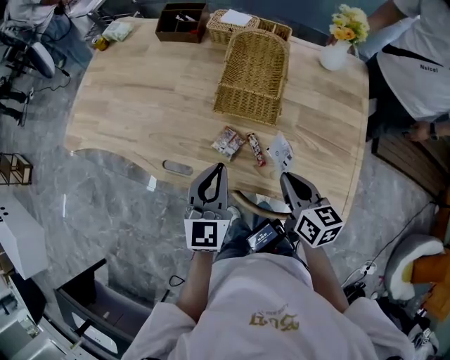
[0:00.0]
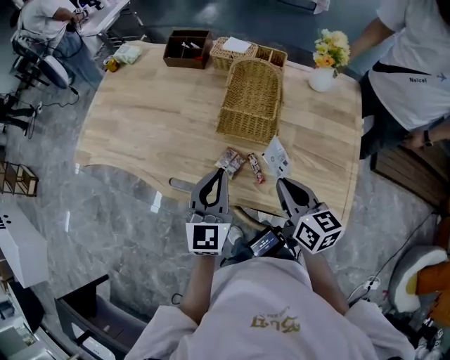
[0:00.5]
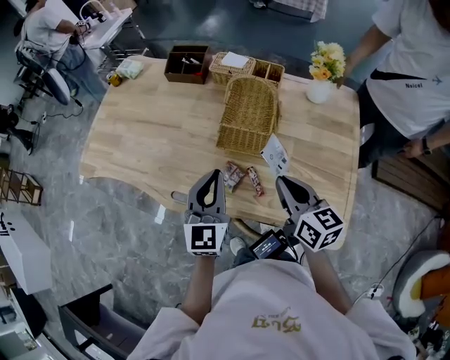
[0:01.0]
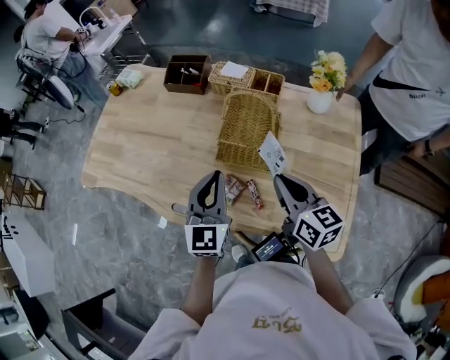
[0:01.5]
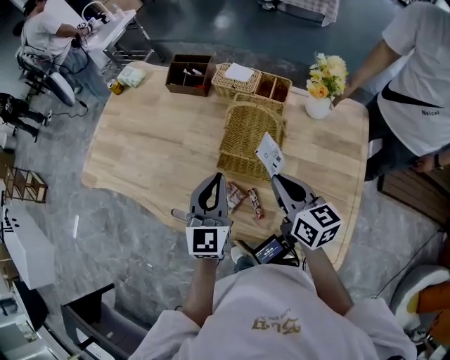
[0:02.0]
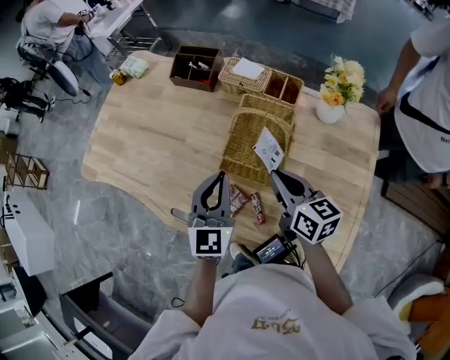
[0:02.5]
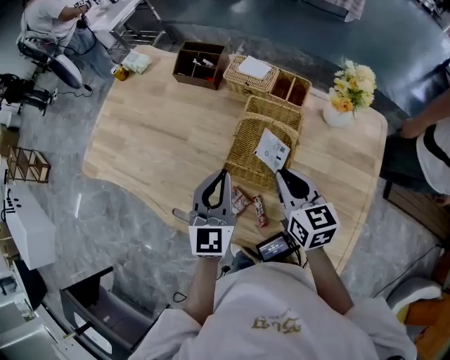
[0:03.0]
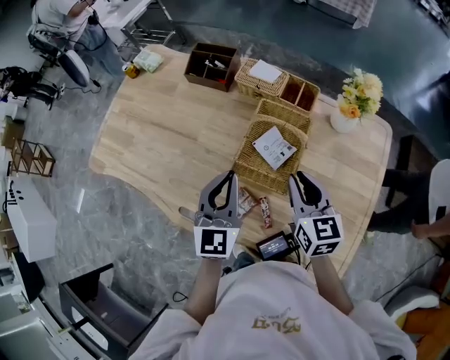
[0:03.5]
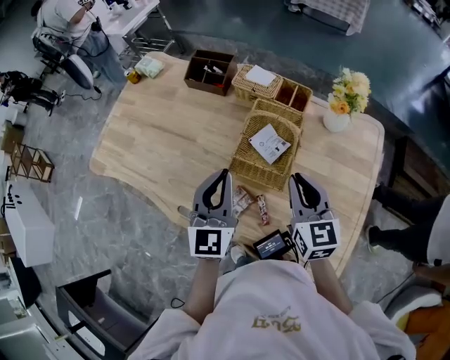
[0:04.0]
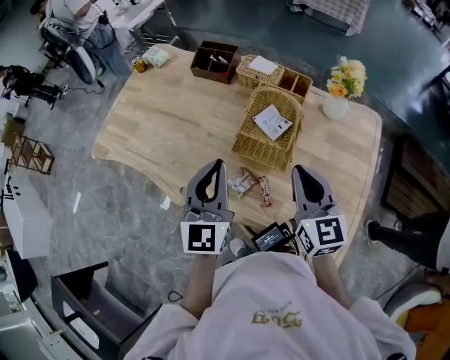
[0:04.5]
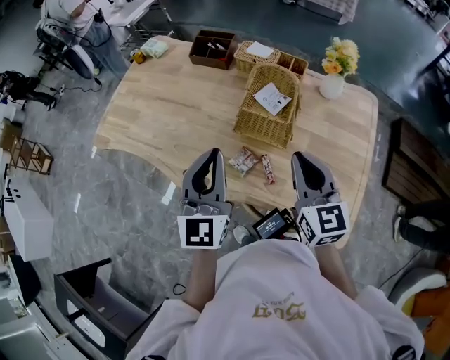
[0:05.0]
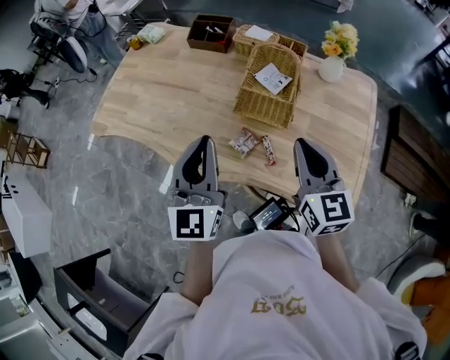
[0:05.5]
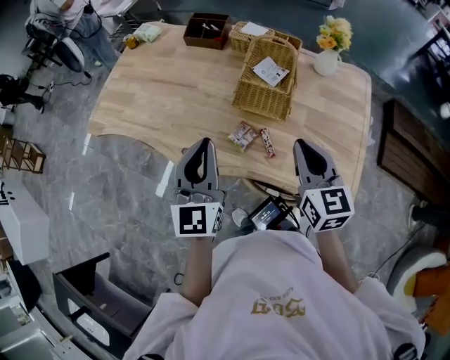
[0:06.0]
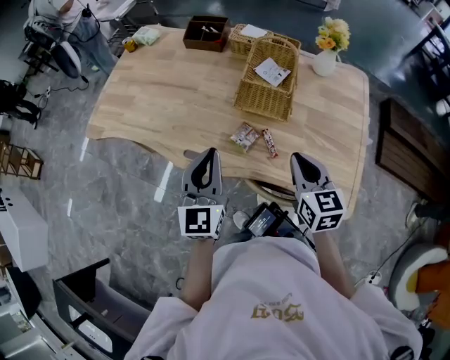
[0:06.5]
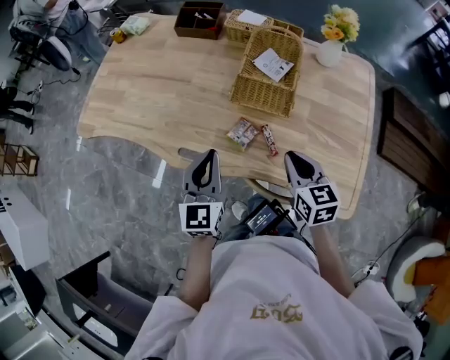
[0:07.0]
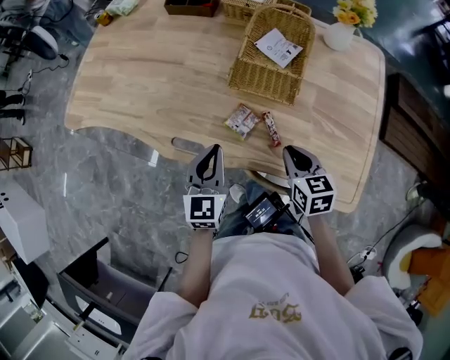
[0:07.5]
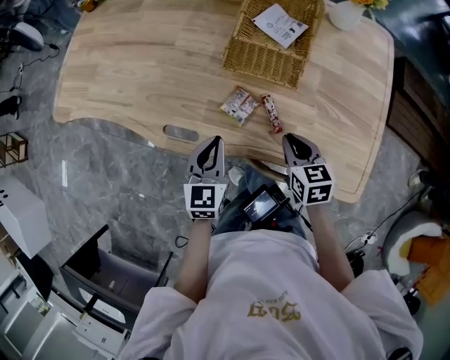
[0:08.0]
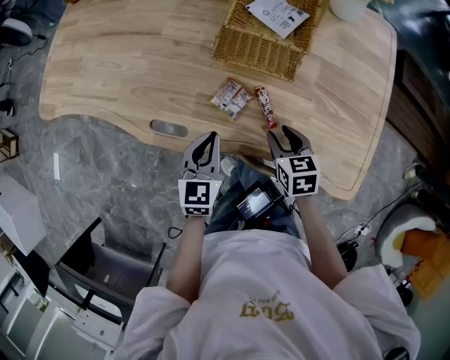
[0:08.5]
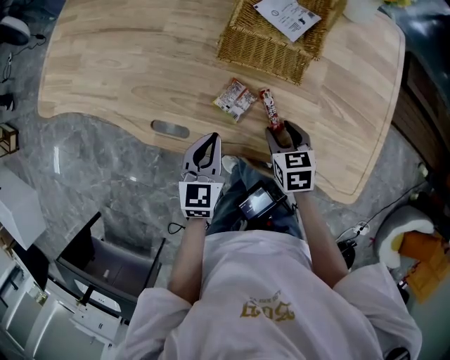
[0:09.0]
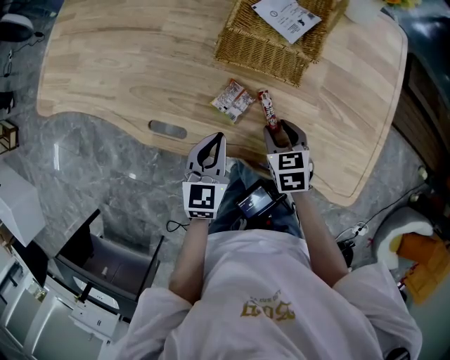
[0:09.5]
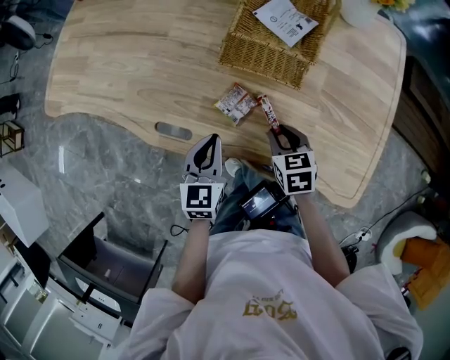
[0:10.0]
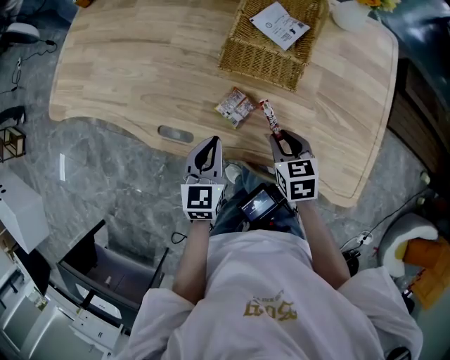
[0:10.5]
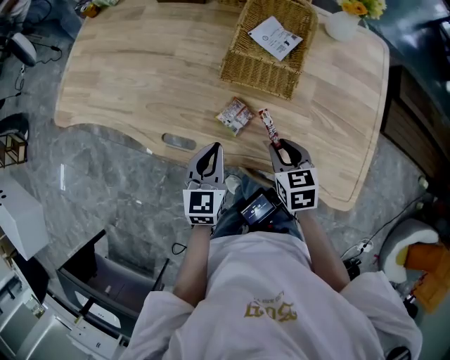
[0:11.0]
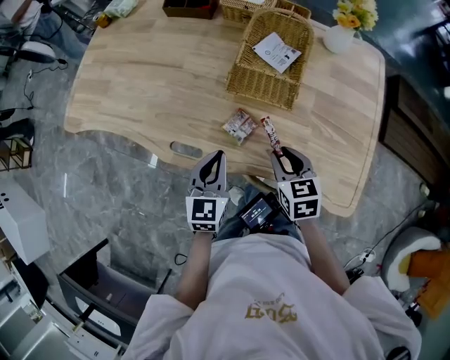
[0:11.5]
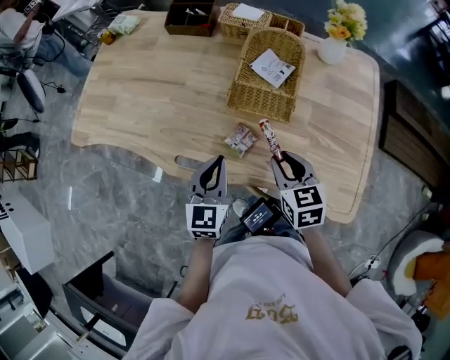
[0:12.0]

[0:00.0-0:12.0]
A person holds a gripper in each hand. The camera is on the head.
0:00.0 to 0:02.0: Both grippers travel together forward and upward, about 15 cm.
0:02.0 to 0:04.0: The right gripper turns by about 20 degrees.
0:04.0 to 0:06.0: The left gripper shifts roughly 20 cm backward and to the left. Meanwhile the right gripper heads backward, covering some 15 cm.
0:06.0 to 0:08.0: The grippers both shift downward by some 25 cm. The right gripper turns by approximately 30 degrees; the left gripper changes its angle by some 30 degrees.
0:08.0 to 0:10.0: The right gripper shifts roughly 5 cm downward, and opens up.
0:10.0 to 0:12.0: The two grippers go about 15 cm upward.

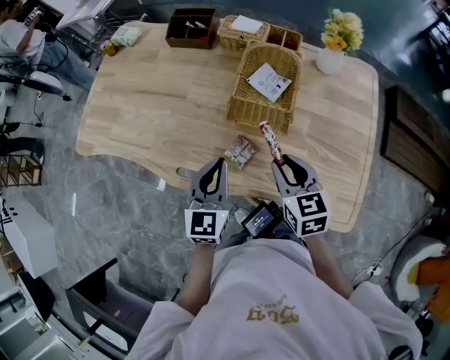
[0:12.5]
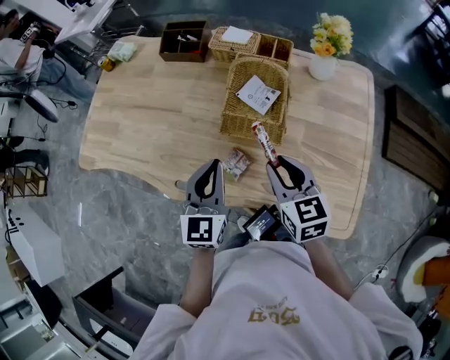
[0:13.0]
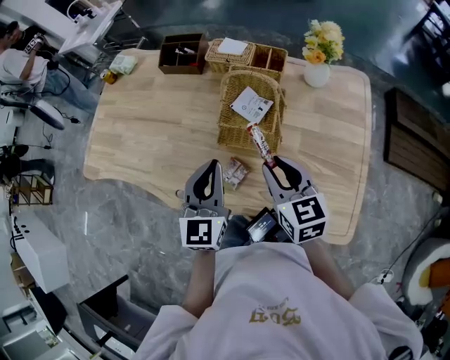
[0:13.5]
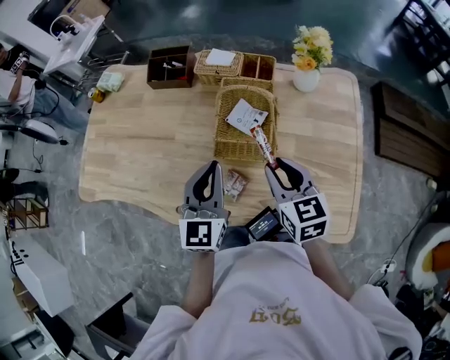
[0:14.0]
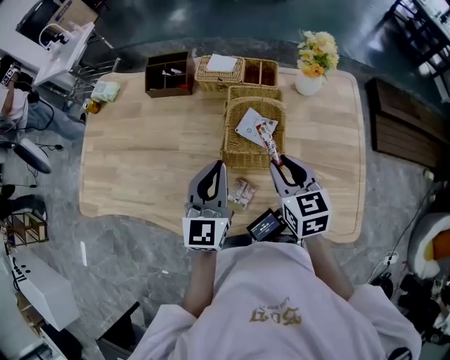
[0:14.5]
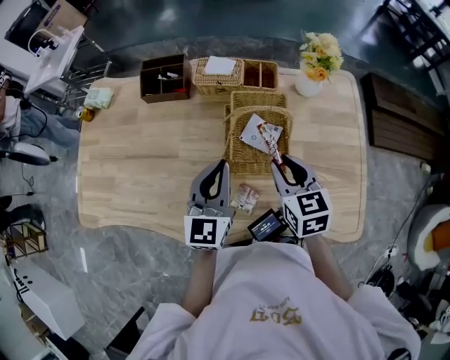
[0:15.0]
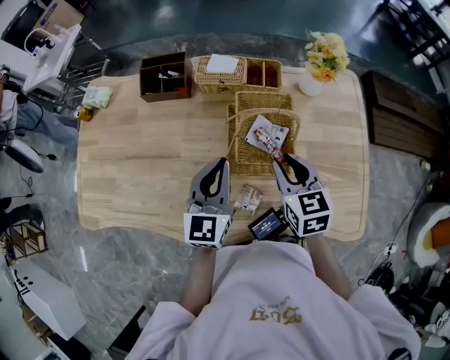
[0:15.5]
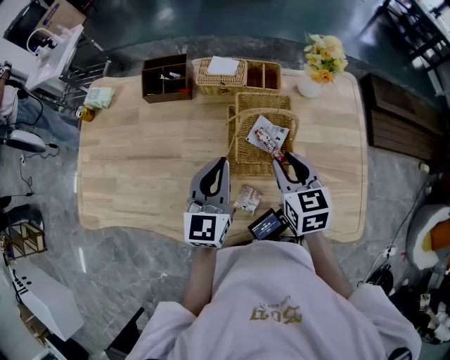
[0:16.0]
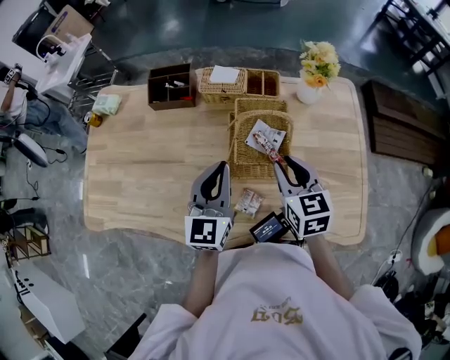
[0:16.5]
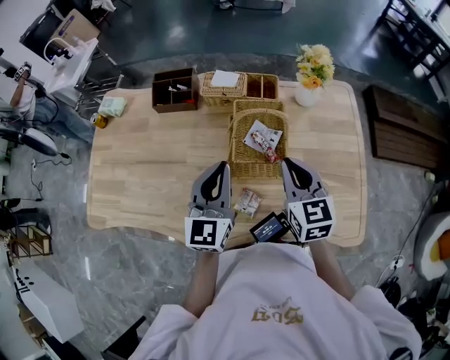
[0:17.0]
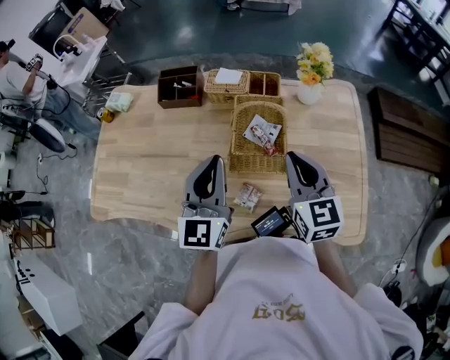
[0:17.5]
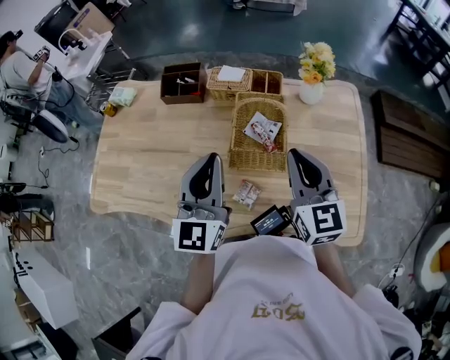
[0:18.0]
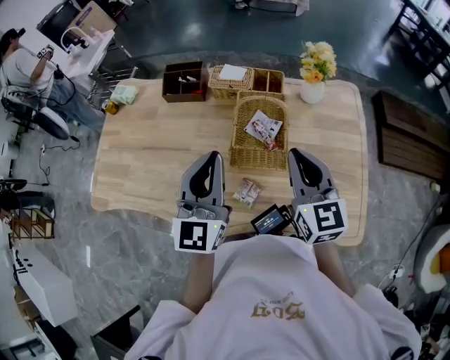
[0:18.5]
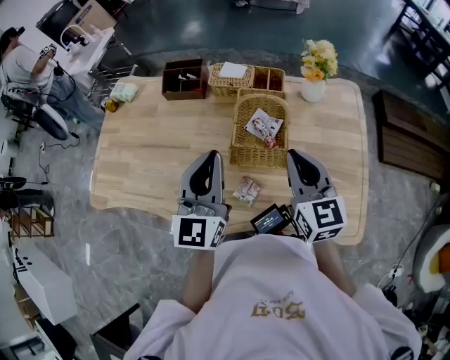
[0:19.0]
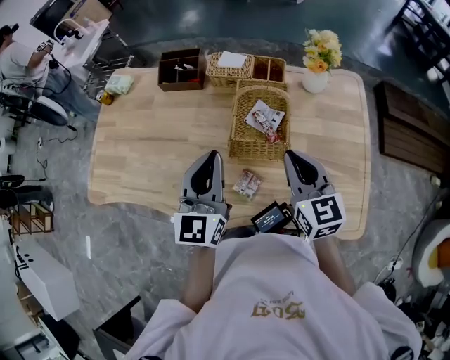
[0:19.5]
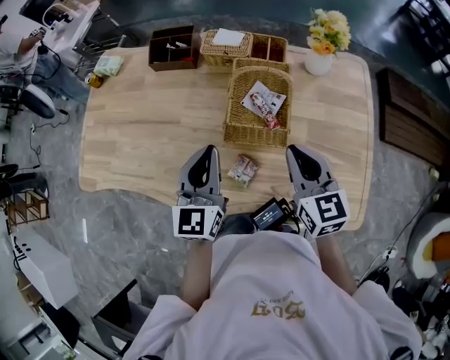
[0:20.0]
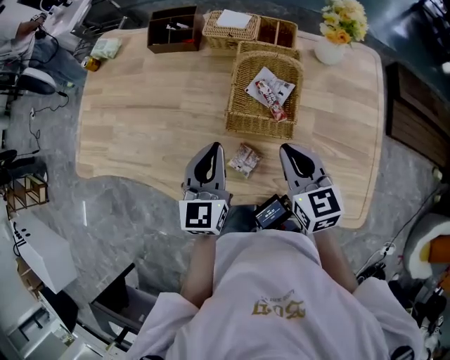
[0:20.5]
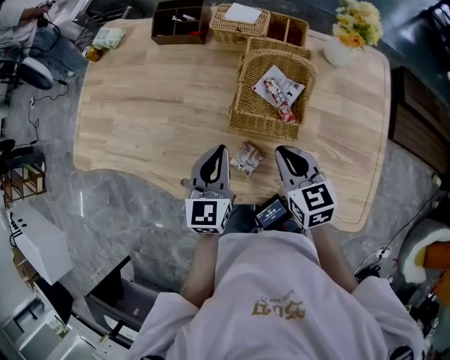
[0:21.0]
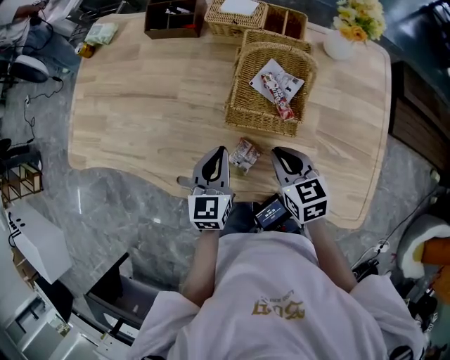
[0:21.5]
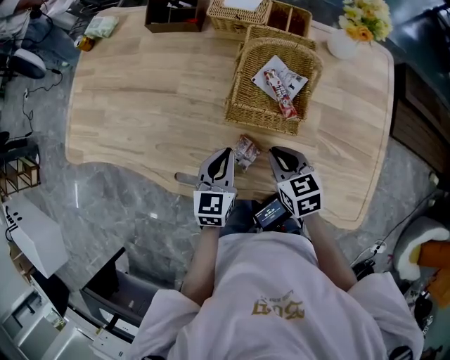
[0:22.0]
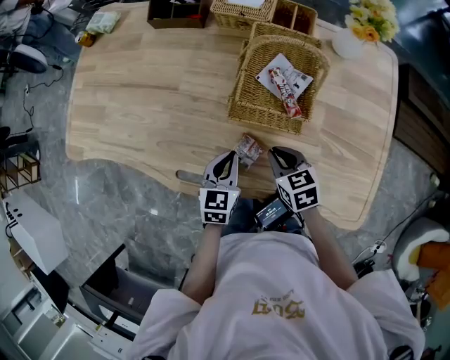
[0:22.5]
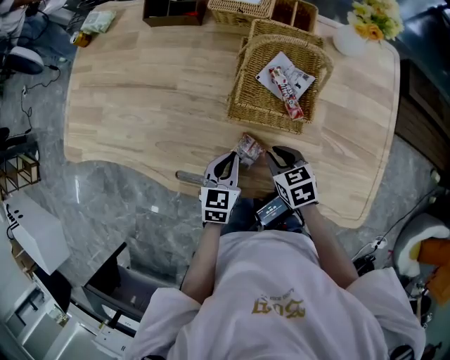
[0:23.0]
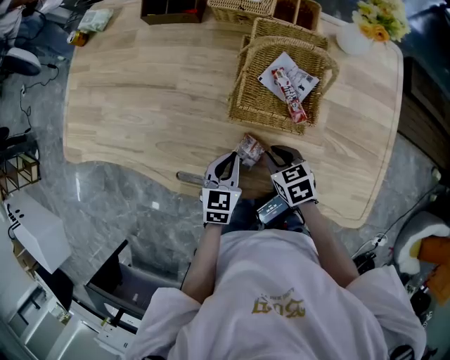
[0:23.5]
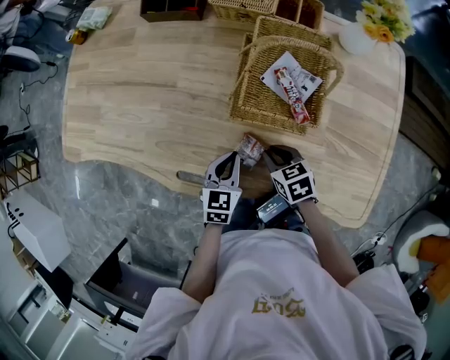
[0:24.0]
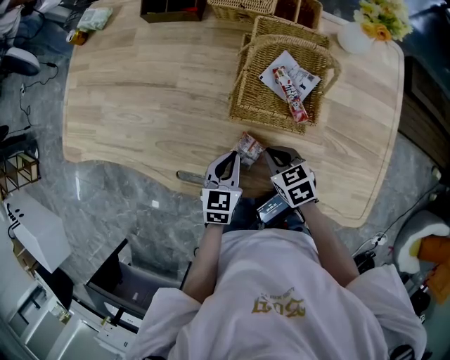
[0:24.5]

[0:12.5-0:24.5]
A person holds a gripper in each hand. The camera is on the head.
0:12.5 to 0:14.5: The right gripper travels forward by roughly 10 cm. Meanwhile the left gripper travels forward and upward by roughly 15 cm.
0:14.5 to 0:16.5: The grippers stay close to where they were, moving slightly.
0:16.5 to 0:18.5: The left gripper moves upward and backward, some 10 cm; the right gripper is displaced upward by roughly 10 cm, rotates roughly 20 degrees, and closes its fingers.
0:18.5 to 0:20.5: Both grippers move downward, about 15 cm. The right gripper changes its angle by approximately 20 degrees. Meanwhile the left gripper rotates some 20 degrees.
0:20.5 to 0:22.5: Both grippers move downward, roughly 15 cm. The right gripper swivels about 30 degrees; the left gripper turns by some 20 degrees.
0:22.5 to 0:24.5: The grippers stay close to where they were, moving slightly.

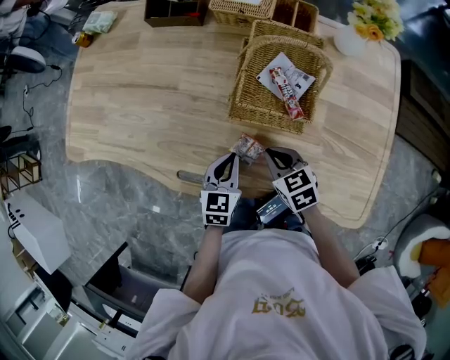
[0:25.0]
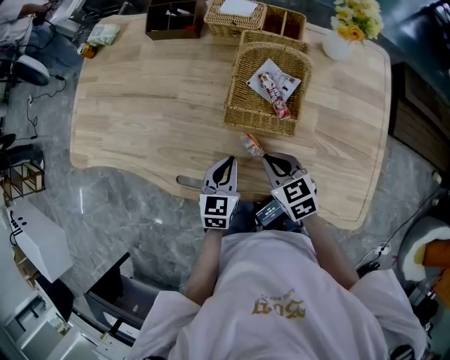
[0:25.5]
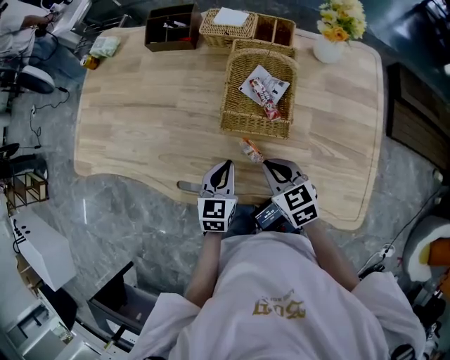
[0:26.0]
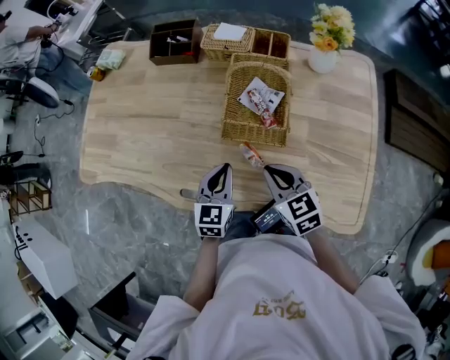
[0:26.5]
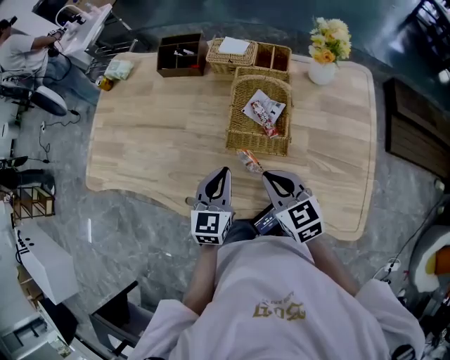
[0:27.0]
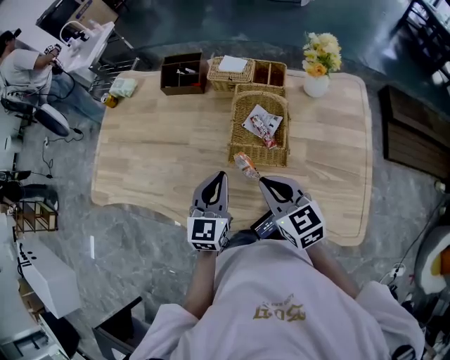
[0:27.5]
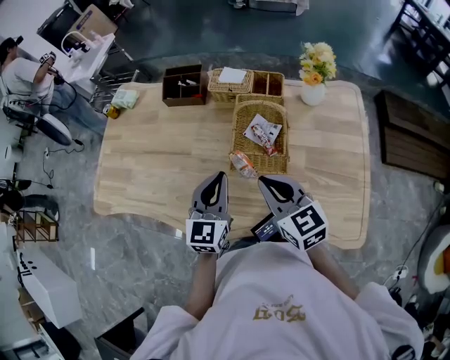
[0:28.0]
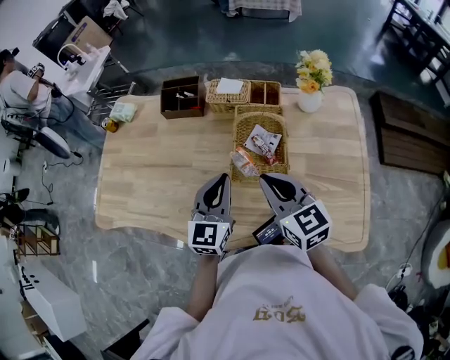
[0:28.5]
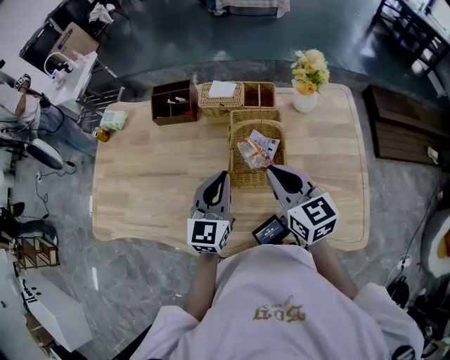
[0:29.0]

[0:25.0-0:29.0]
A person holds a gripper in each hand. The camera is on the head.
0:25.0 to 0:27.0: Both grippers move upward, approximately 15 cm.
0:27.0 to 0:29.0: The grippers both shift upward and forward by approximately 15 cm.
